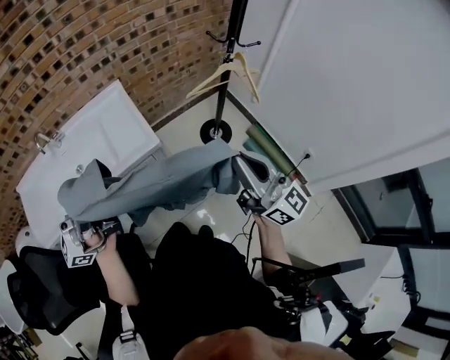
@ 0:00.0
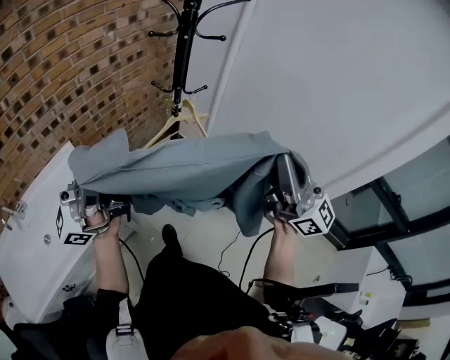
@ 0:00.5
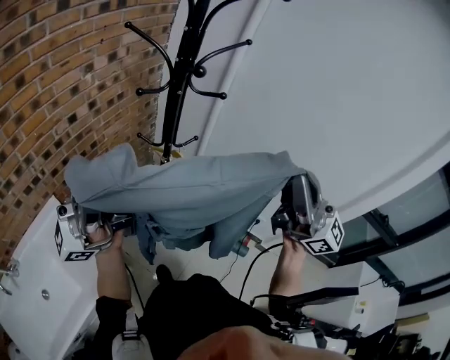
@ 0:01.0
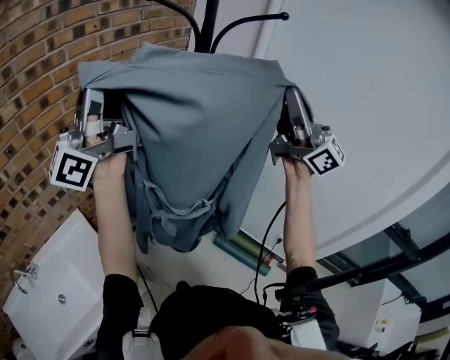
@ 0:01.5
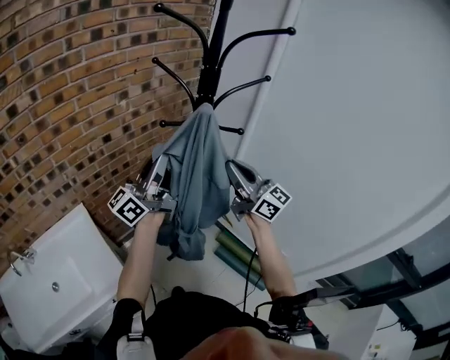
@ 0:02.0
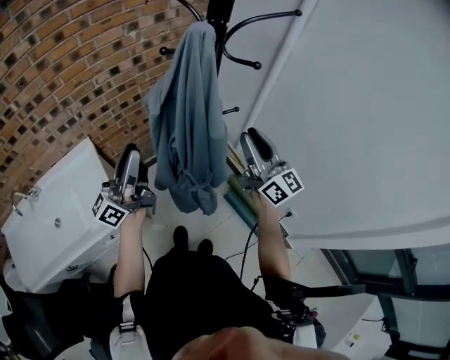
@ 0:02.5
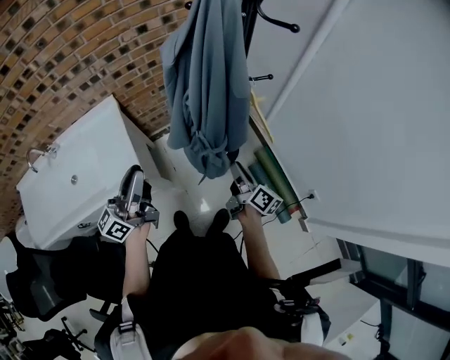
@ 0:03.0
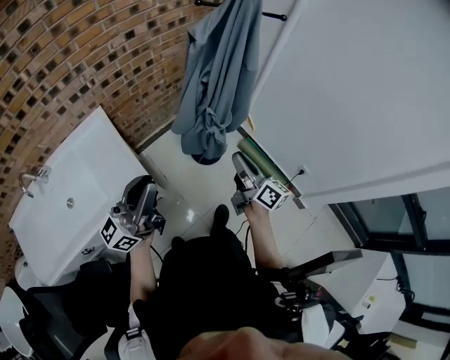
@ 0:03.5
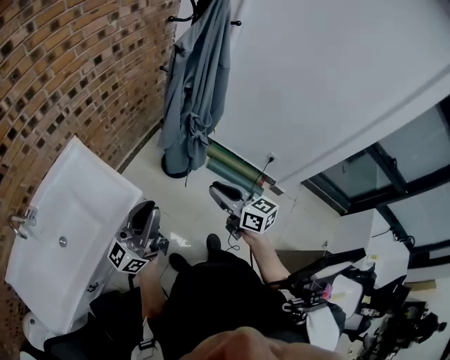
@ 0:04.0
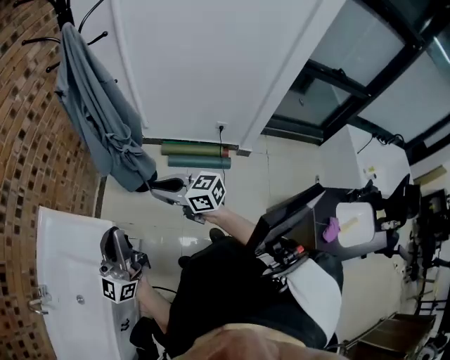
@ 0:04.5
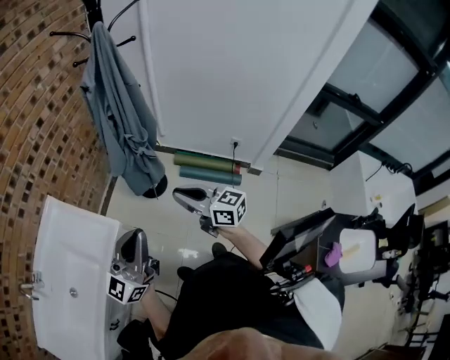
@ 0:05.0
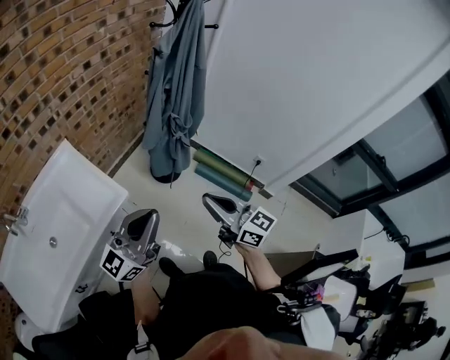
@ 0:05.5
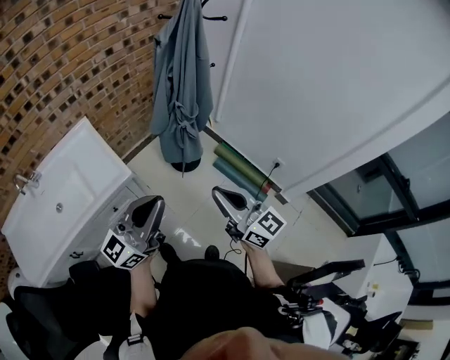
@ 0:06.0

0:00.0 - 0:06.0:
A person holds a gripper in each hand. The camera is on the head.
0:00.0 - 0:02.0: The pair of grippers is taken approximately 50 cm. The left gripper changes its angle by about 20 degrees.
0:02.0 - 0:04.0: Both grippers travel together backward, downward and to the left, roughly 40 cm. The right gripper tilts its fingers about 30 degrees downward.
0:04.0 - 0:06.0: The right gripper moves to the right, upward and backward, some 15 cm, and changes its angle by about 20 degrees; the left gripper is displaced to the right and backward by about 15 cm.

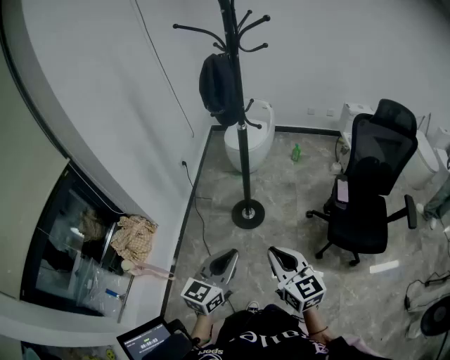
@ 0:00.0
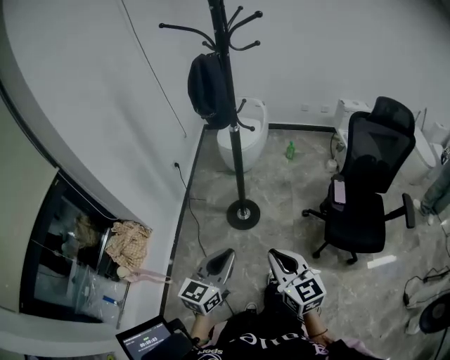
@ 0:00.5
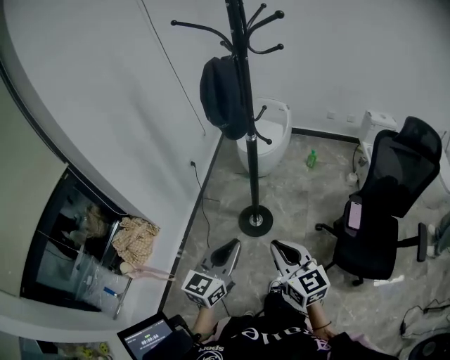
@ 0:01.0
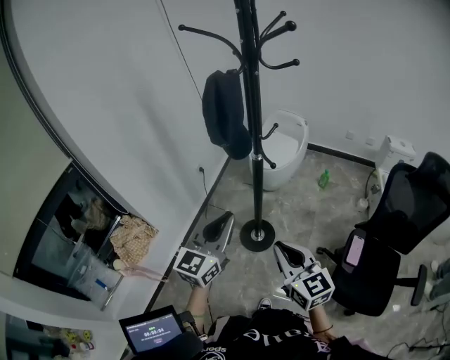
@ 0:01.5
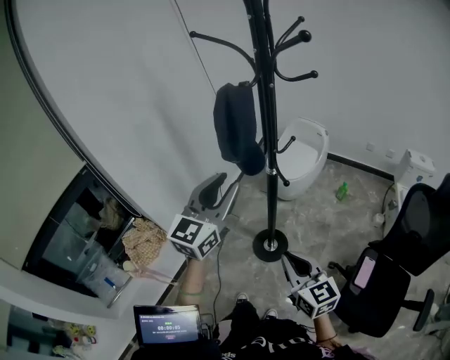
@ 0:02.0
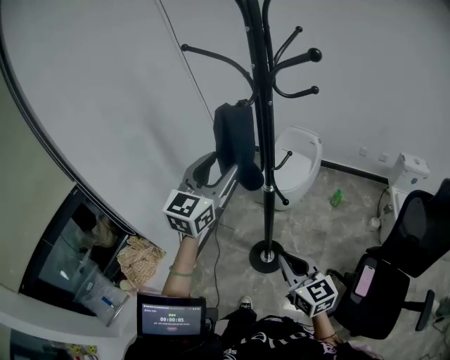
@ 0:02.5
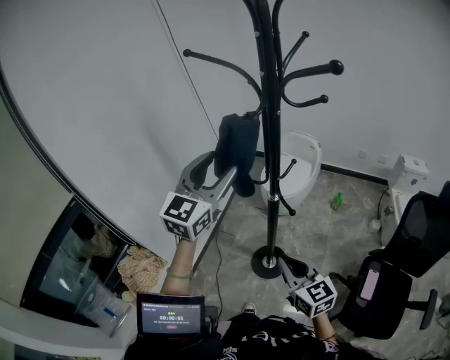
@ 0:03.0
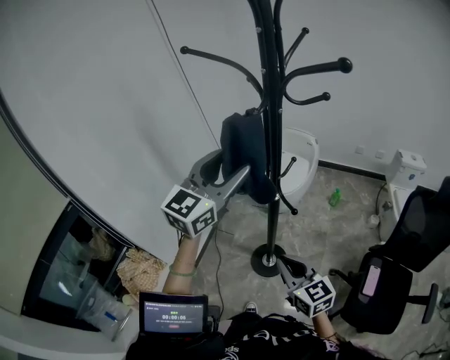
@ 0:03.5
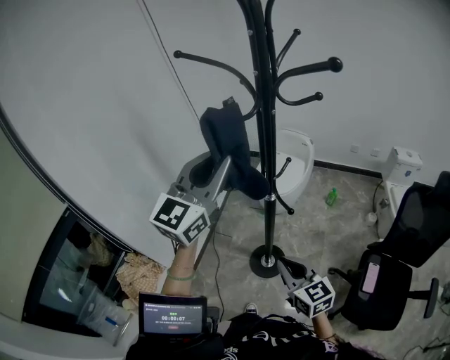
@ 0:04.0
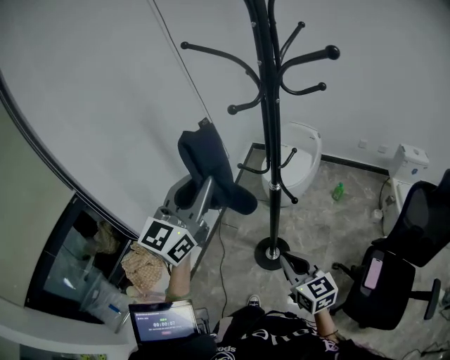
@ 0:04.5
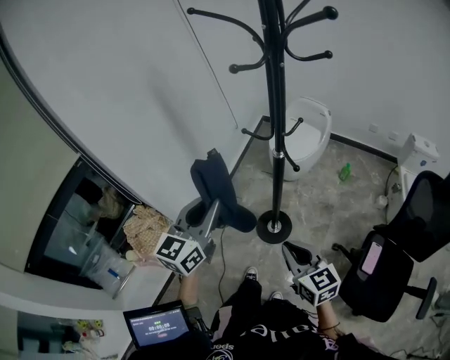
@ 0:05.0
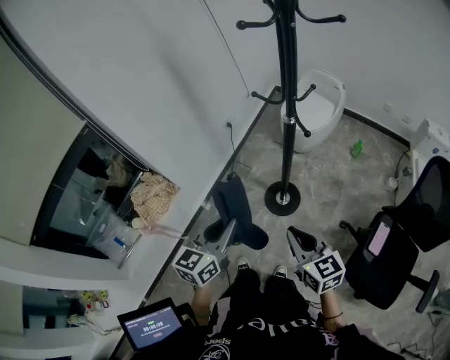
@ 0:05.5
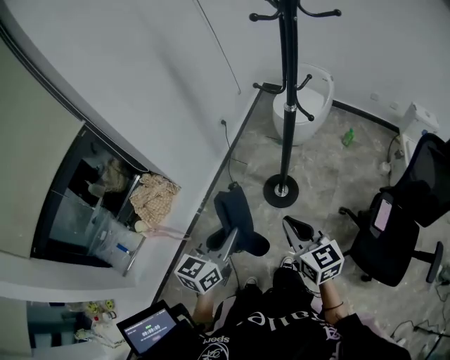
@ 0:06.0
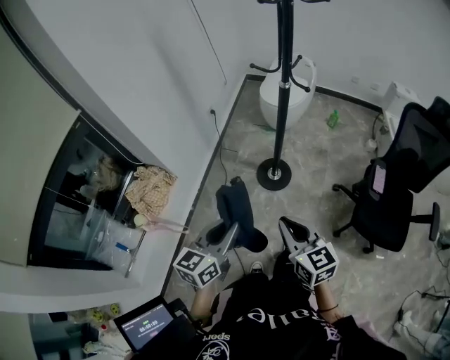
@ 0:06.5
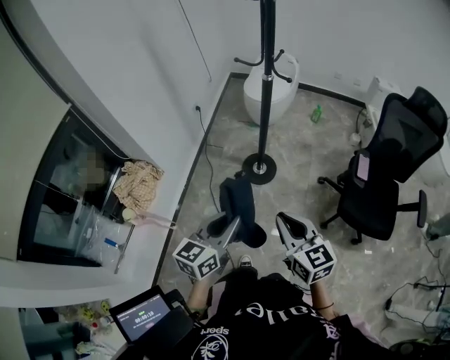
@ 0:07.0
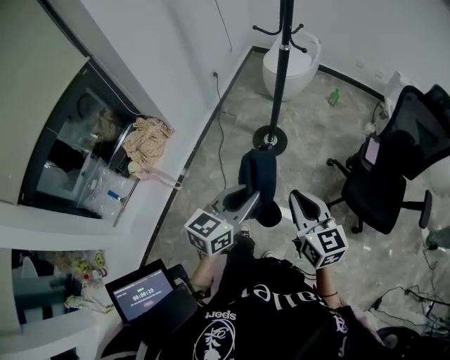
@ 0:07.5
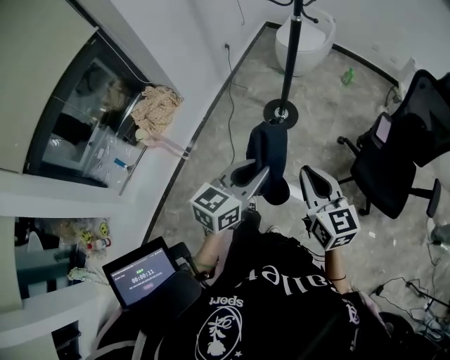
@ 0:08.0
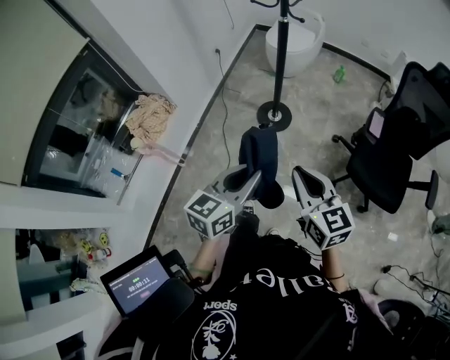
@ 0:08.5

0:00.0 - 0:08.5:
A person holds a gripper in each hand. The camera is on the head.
0:00.0 - 0:02.0: The left gripper heads forward and upward, covering about 40 cm, changes its angle by approximately 30 degrees, and opens its fingers. Meanwhile the right gripper goes roughly 30 cm forward.
0:02.0 - 0:04.0: The right gripper goes some 10 cm forward and to the left. Meanwhile the left gripper travels upward and forward by some 15 cm, and opens, then closes once more.
0:04.0 - 0:06.5: The left gripper shifts roughly 50 cm backward and downward, and changes its angle by roughly 40 degrees. Meanwhile the right gripper goes roughly 30 cm backward and to the left.
0:06.5 - 0:08.5: The two grippers go some 20 cm backward and to the right.

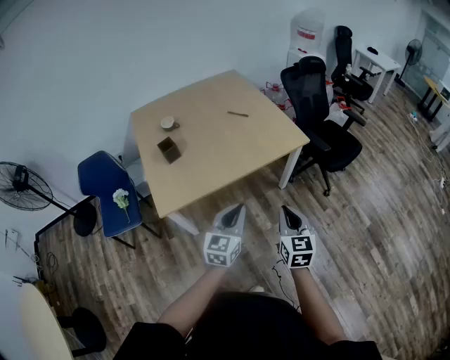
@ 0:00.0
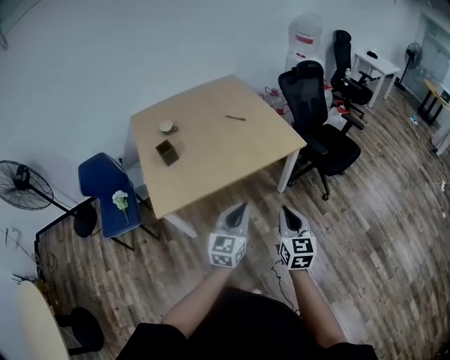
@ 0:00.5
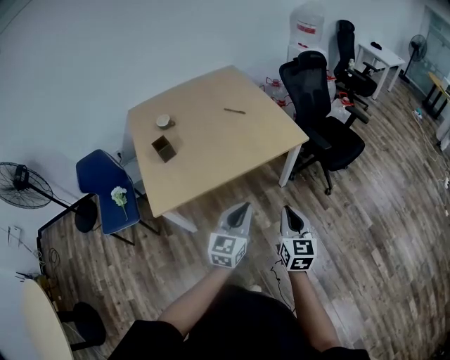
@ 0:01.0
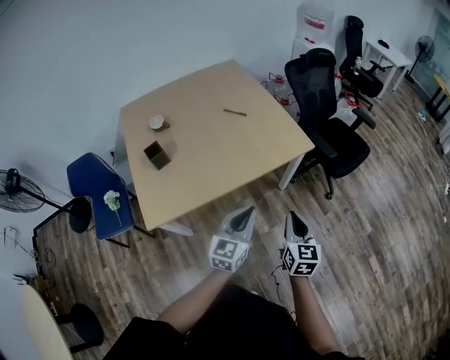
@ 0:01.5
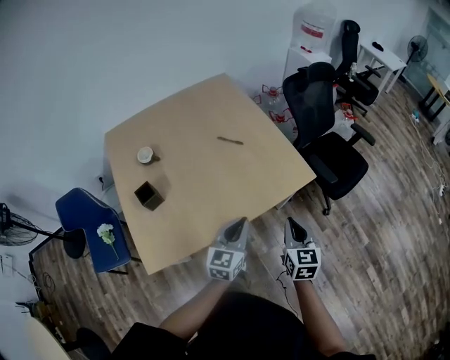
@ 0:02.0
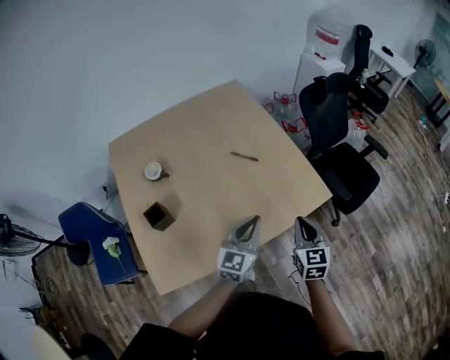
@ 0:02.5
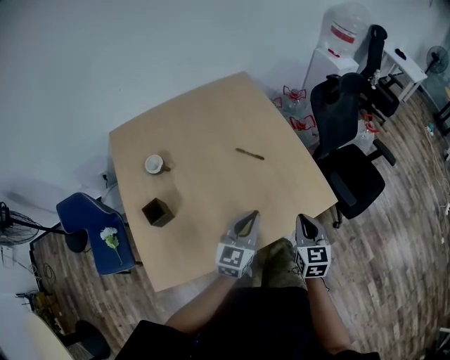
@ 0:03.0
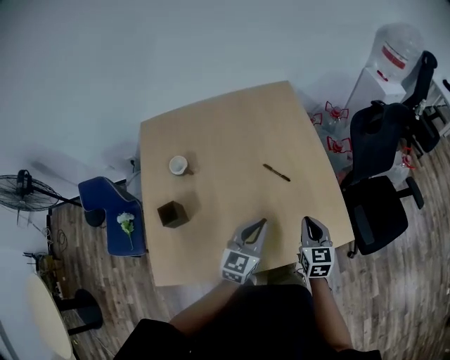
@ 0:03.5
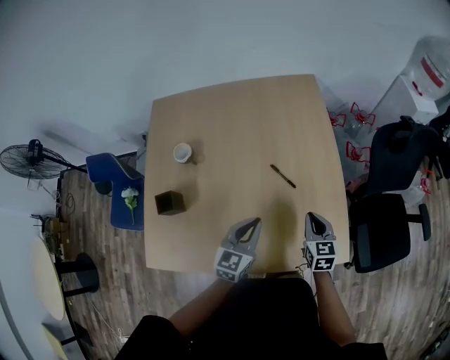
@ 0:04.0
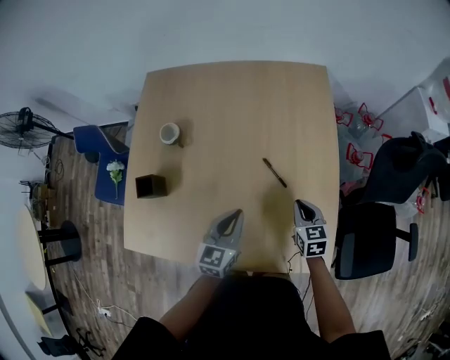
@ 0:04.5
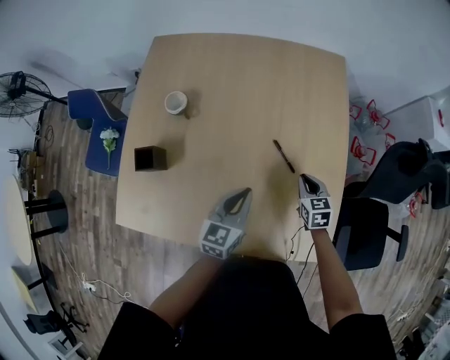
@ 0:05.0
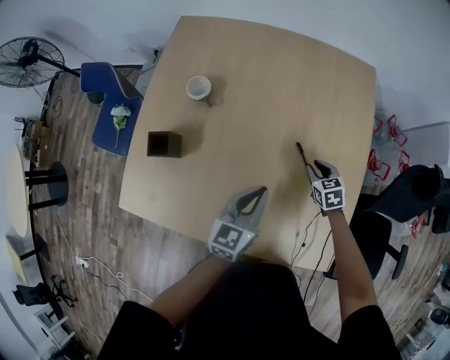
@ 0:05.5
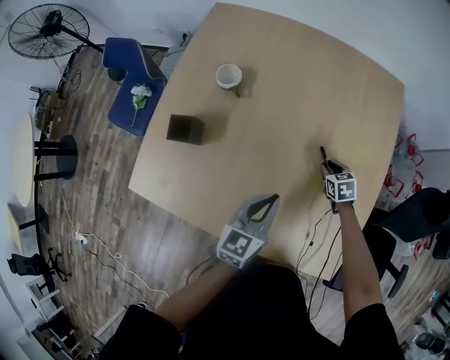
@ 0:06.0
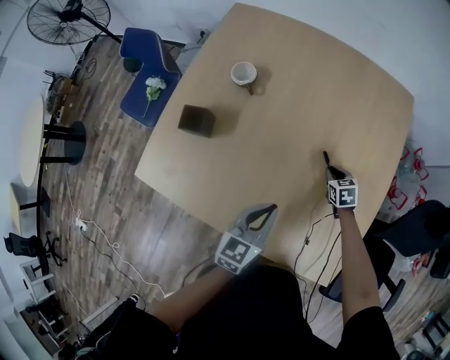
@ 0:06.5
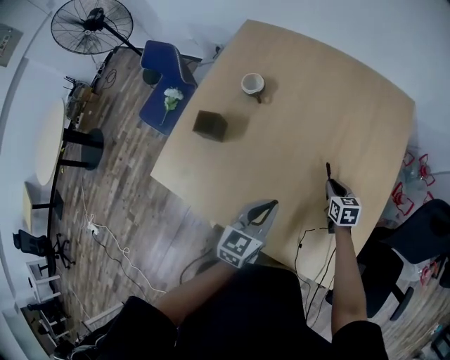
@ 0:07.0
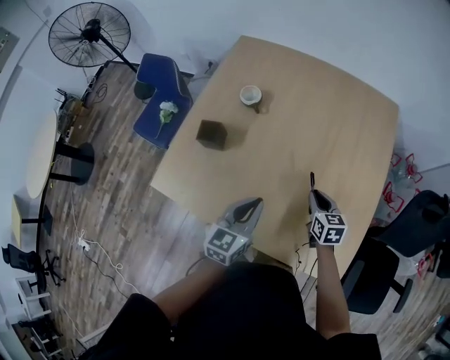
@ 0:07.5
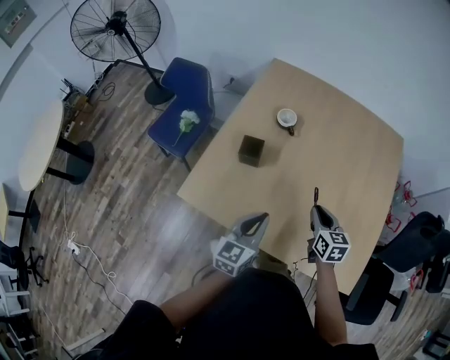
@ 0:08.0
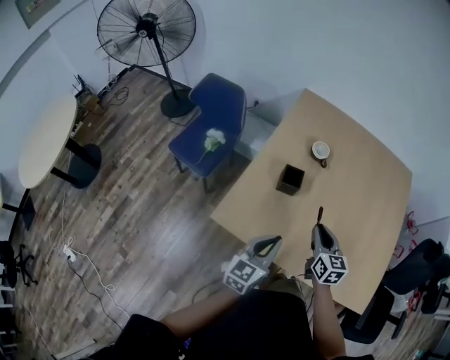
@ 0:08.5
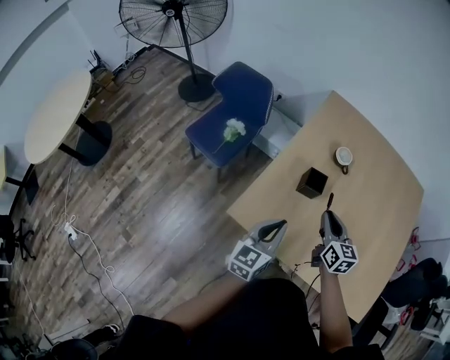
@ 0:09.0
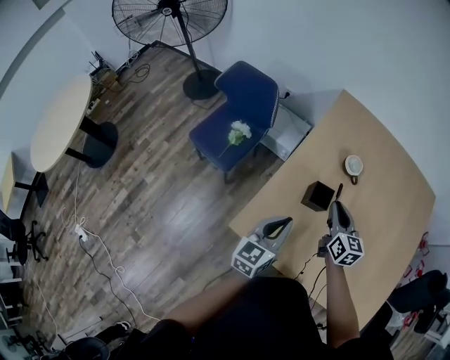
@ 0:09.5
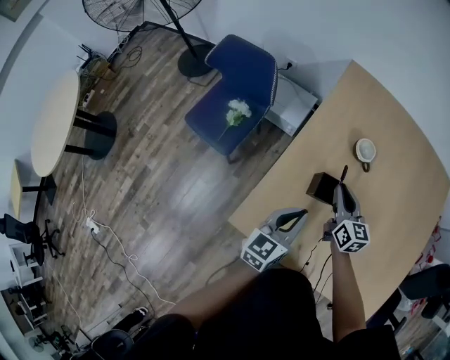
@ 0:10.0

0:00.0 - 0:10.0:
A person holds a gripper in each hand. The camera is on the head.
0:00.0 - 0:02.0: Both grippers move forward, about 35 cm.
0:02.0 - 0:04.0: The left gripper shifts by approximately 35 cm, and rotates approximately 20 degrees. Meanwhile the right gripper moves approximately 40 cm, and rotates approximately 30 degrees.
0:04.0 - 0:06.0: The right gripper ends up about 30 cm from where it was, swivels some 40 degrees, and opens up, while the left gripper moves about 10 cm, and swivels roughly 30 degrees.
0:06.0 - 0:08.0: The left gripper goes about 30 cm to the left and backward; the right gripper is displaced to the left, upward and backward by about 40 cm, and swivels approximately 30 degrees.
0:08.0 - 0:10.0: The two grippers go about 35 cm to the left and forward.

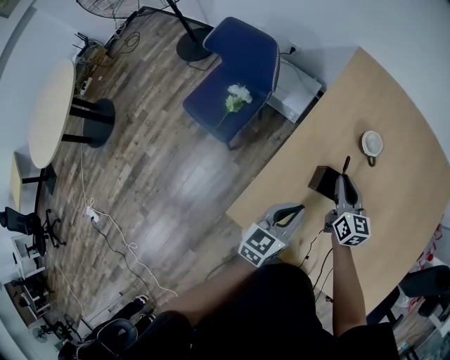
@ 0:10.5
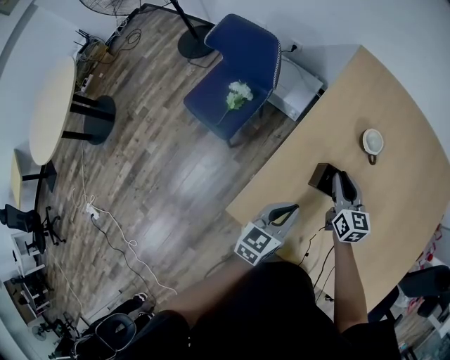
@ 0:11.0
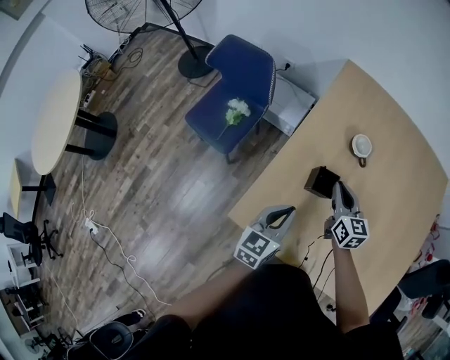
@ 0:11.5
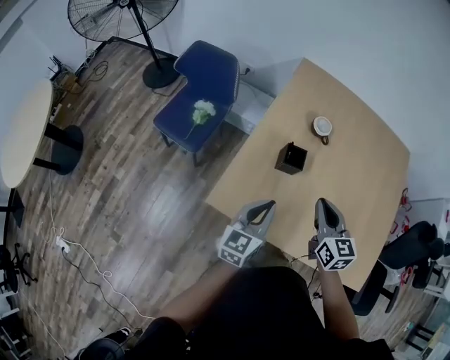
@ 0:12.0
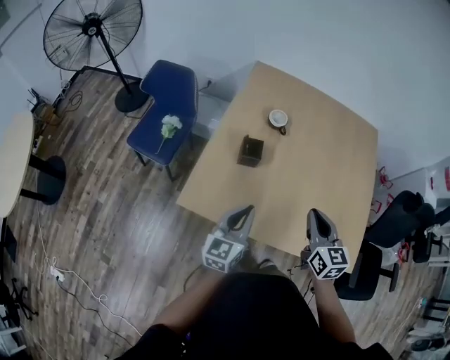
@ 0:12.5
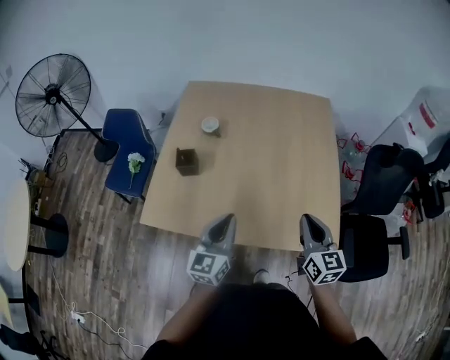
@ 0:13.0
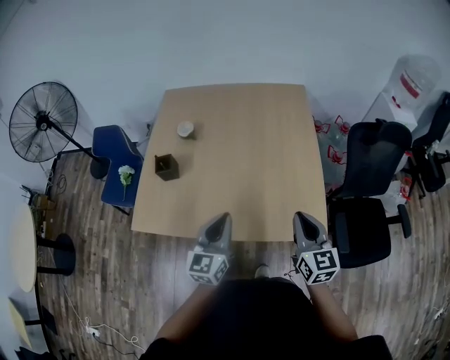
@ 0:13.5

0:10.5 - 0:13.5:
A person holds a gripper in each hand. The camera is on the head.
0:10.5 - 0:12.0: The right gripper moves backward and upward, roughly 30 cm. Meanwhile the left gripper heads backward and upward, covering roughly 15 cm.
0:12.0 - 0:13.5: The pair of grippers is taken to the right, roughly 50 cm. The right gripper turns by some 20 degrees.
